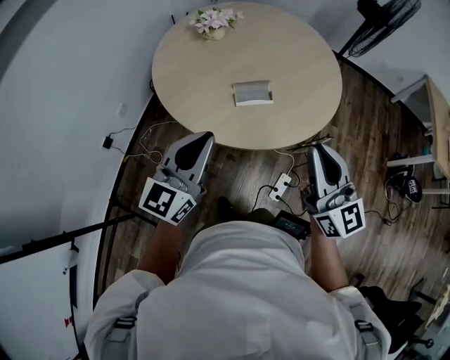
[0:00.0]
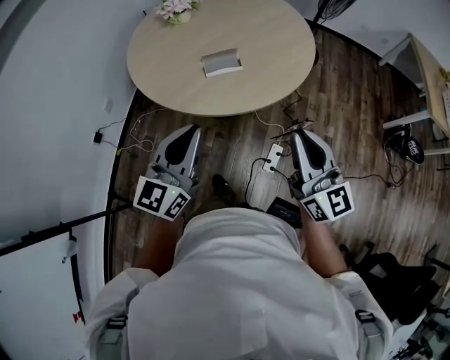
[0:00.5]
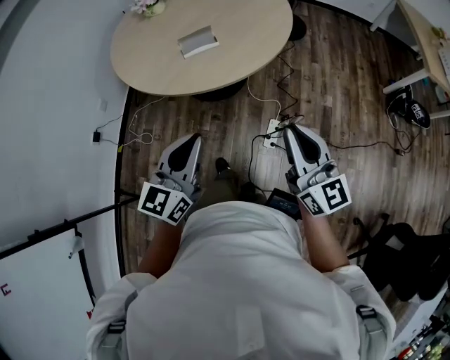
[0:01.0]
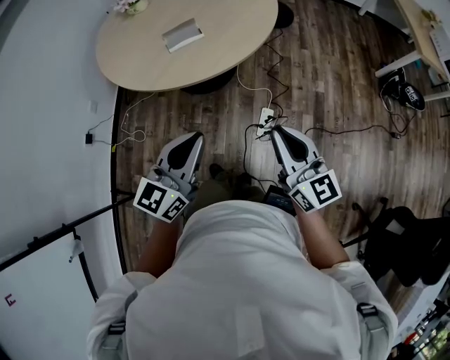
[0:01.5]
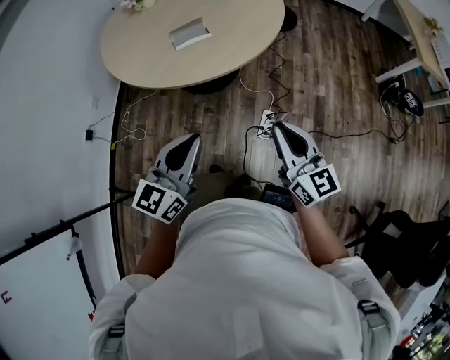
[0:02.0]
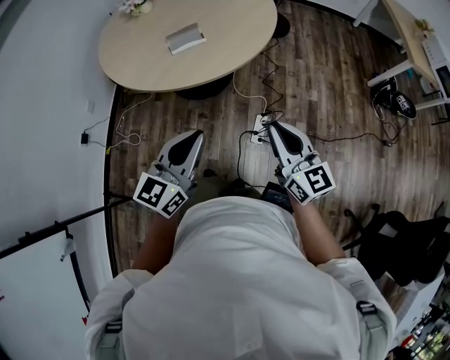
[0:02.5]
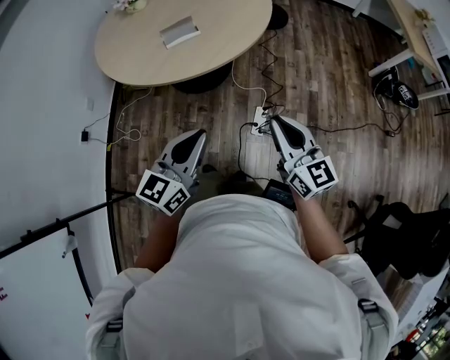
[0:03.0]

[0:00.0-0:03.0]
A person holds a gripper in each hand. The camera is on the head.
0:00.0 to 0:01.5: The left gripper shifts some 25 cm backward and to the right, while the right gripper travels backward, to the right and downward by roughly 30 cm.
0:01.5 to 0:03.0: The grippers move only a little.

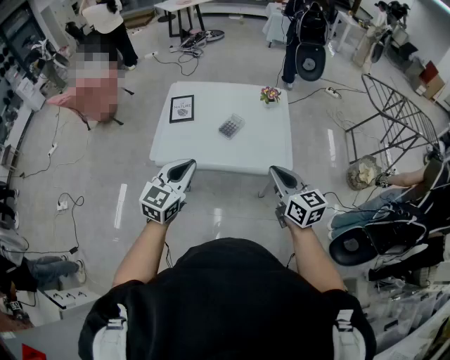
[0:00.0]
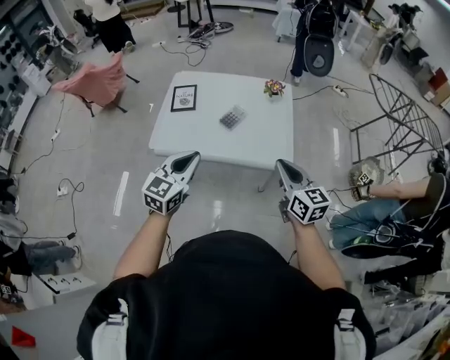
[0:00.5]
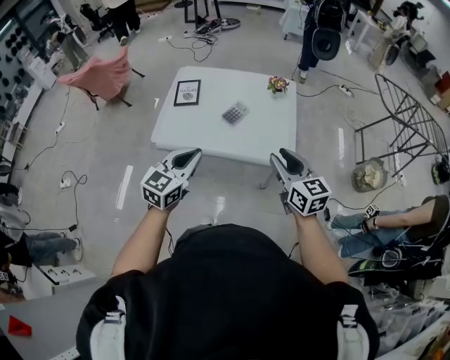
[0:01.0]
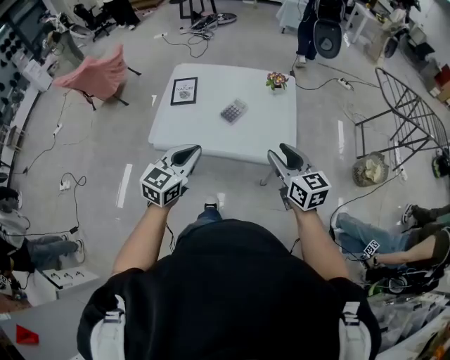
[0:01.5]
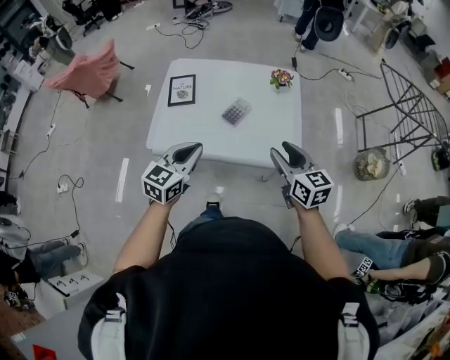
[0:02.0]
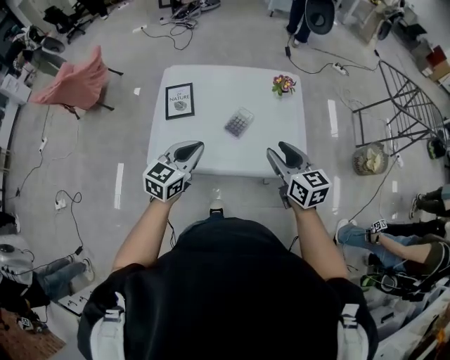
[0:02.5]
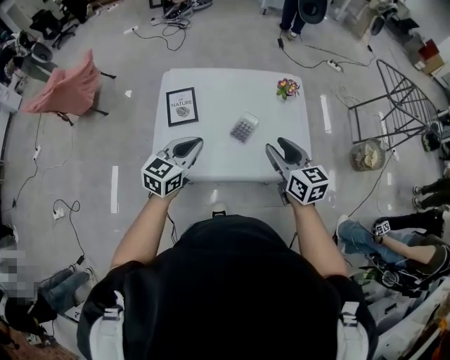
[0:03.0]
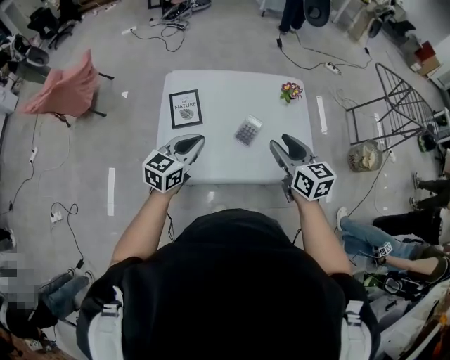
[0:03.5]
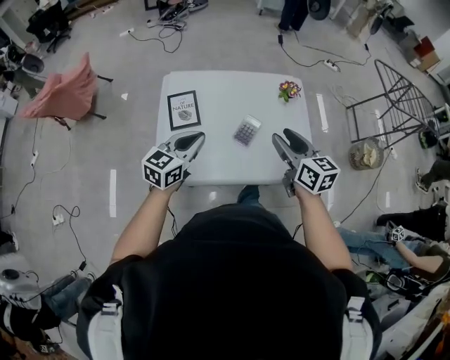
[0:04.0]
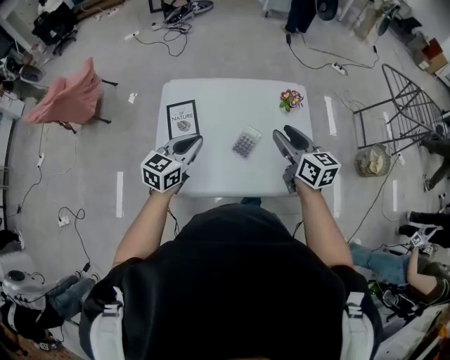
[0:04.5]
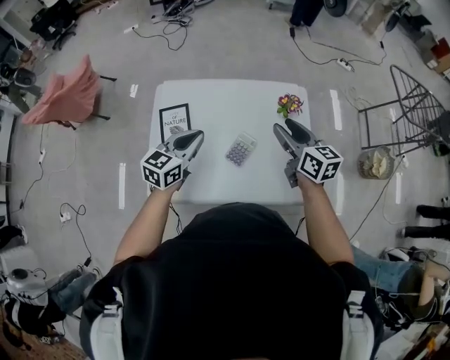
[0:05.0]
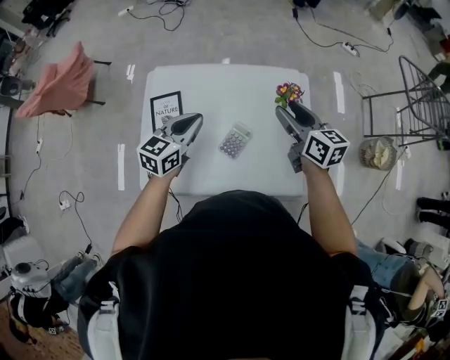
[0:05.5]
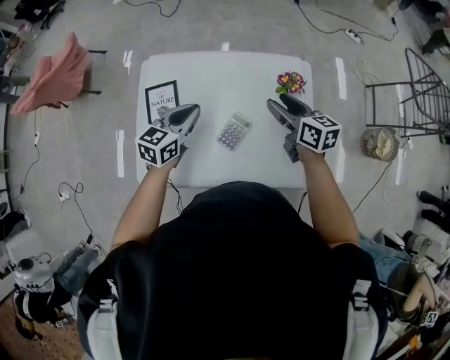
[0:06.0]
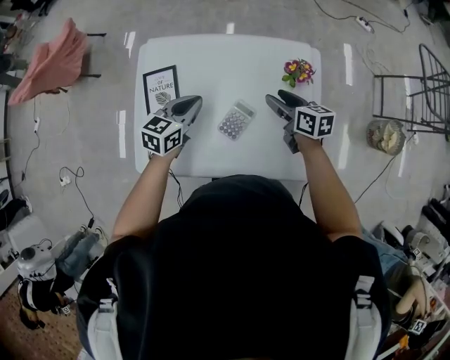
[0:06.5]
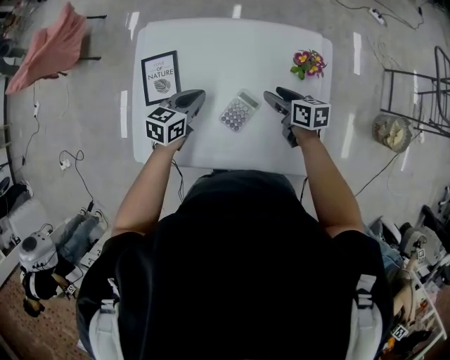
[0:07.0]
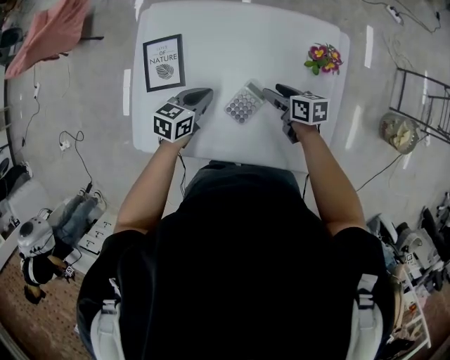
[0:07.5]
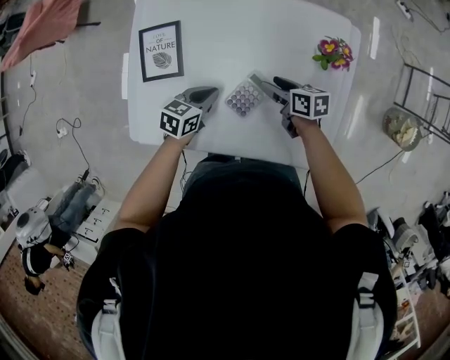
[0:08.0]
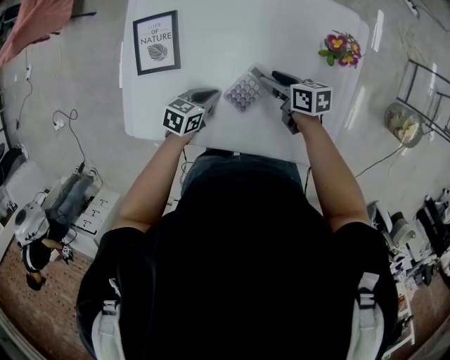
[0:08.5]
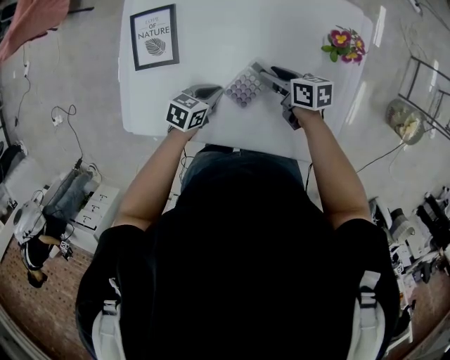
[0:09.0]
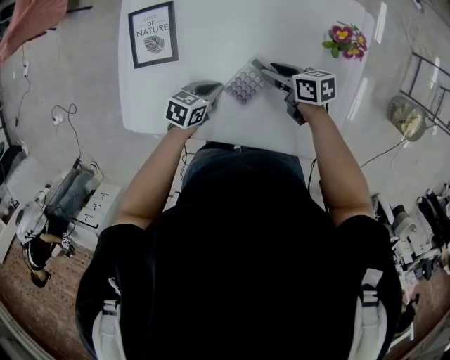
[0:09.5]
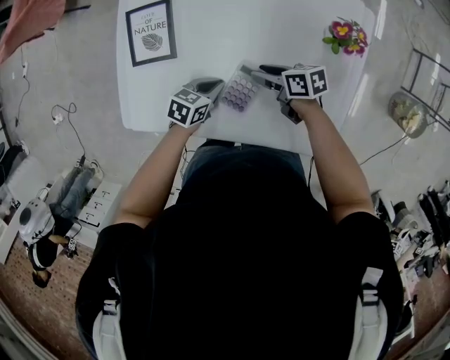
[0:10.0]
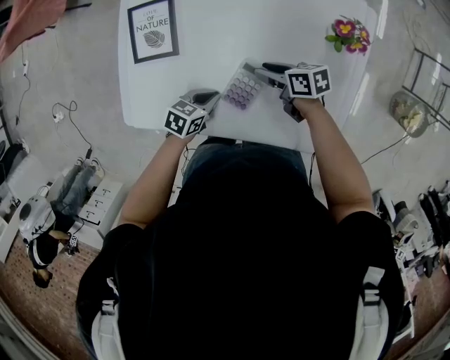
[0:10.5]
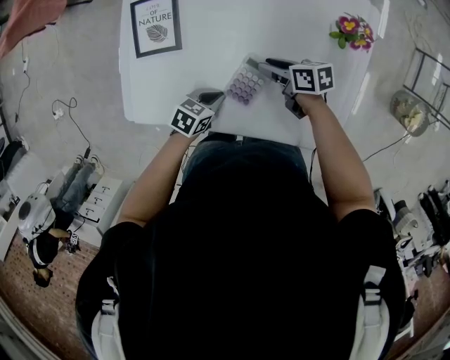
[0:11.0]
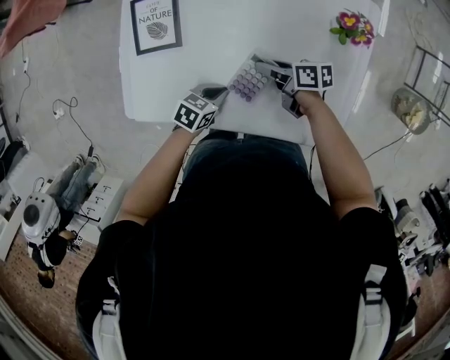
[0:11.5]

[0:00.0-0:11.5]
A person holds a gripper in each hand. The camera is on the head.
0:00.0 to 0:02.0: Both grippers move forward, approximately 10 cm. The right gripper opens its fingers.
0:02.0 to 0:04.0: Both grippers travel together forward and to the left, approximately 20 cm.
0:04.0 to 0:06.0: The right gripper heads forward and downward, covering approximately 25 cm, while the left gripper is displaced forward by approximately 20 cm.
0:06.0 to 0:07.5: Both grippers move downward, roughly 20 cm. The right gripper rotates about 30 degrees; the left gripper changes its angle by approximately 20 degrees.
0:07.5 to 0:09.5: The right gripper shifts by some 5 cm. Meanwhile the left gripper shifts some 10 cm downward.
0:09.5 to 0:11.5: The left gripper ends up approximately 5 cm from where it was.

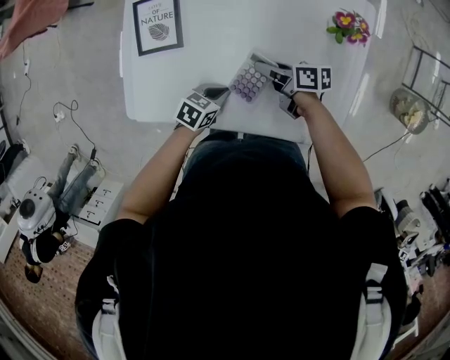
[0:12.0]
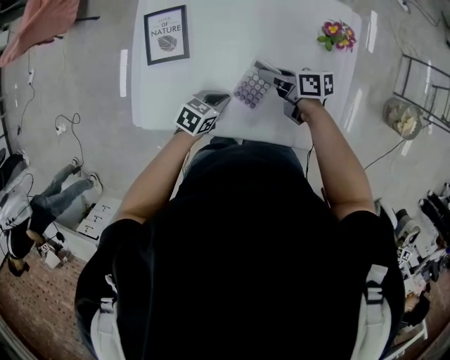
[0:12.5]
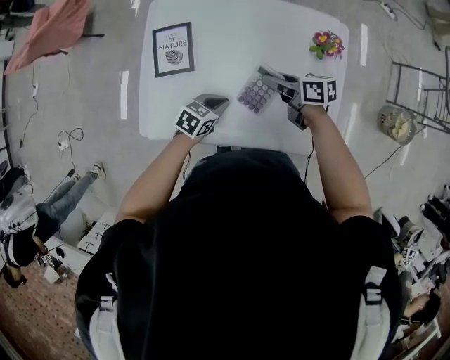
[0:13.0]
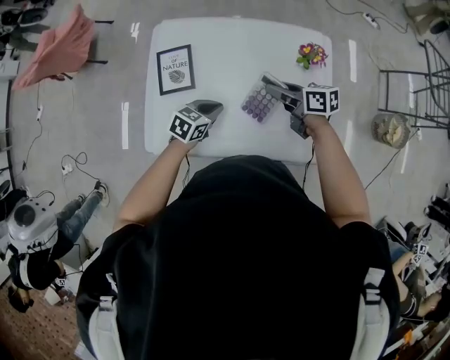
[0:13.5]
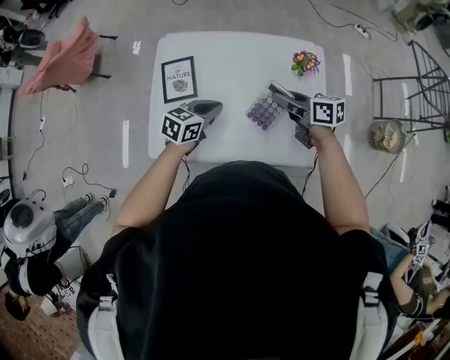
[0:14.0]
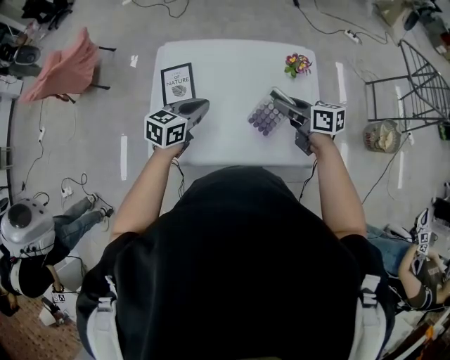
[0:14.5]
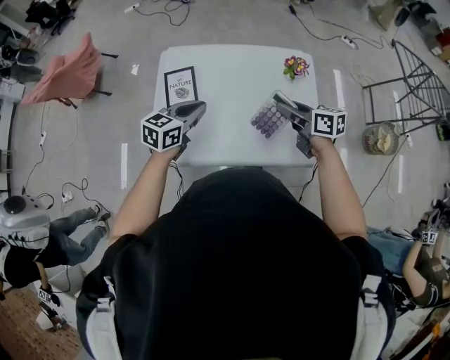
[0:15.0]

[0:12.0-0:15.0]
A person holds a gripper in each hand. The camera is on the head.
0:12.0 to 0:13.5: The two grippers go some 15 cm upward. The right gripper rotates about 20 degrees.
0:13.5 to 0:15.0: The right gripper moves backward and upward, some 15 cm. The left gripper shifts about 15 cm upward, and swivels approximately 20 degrees.

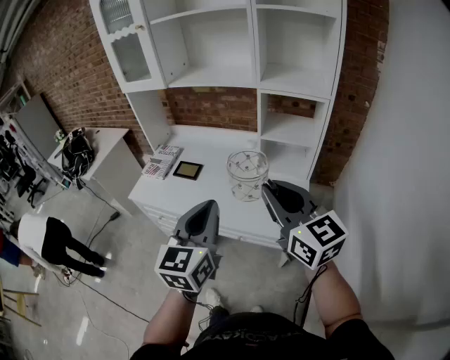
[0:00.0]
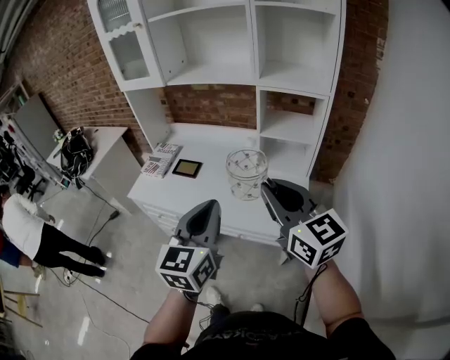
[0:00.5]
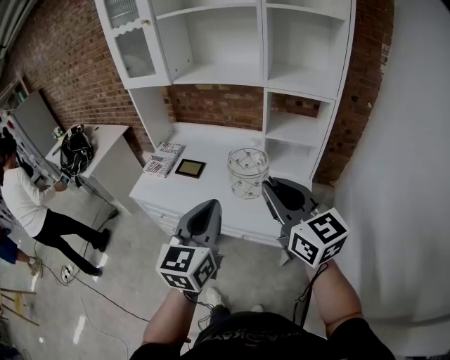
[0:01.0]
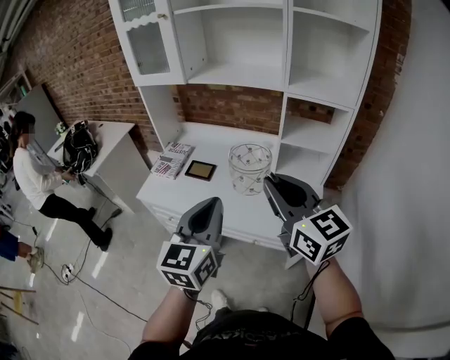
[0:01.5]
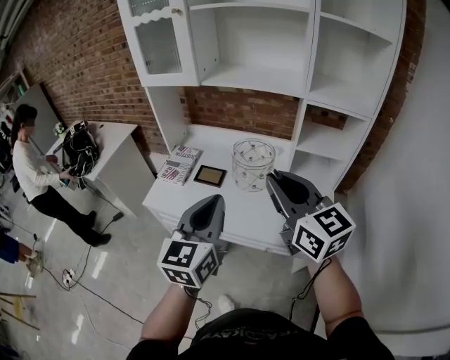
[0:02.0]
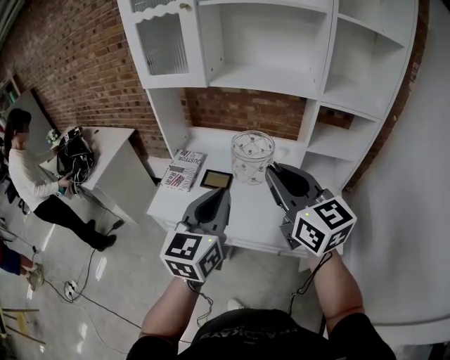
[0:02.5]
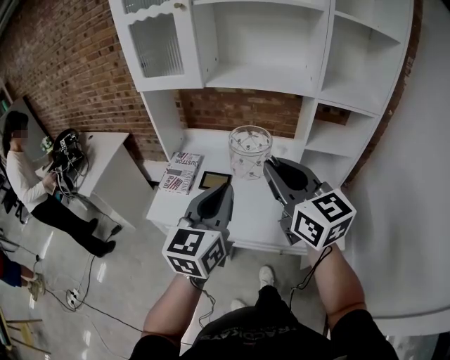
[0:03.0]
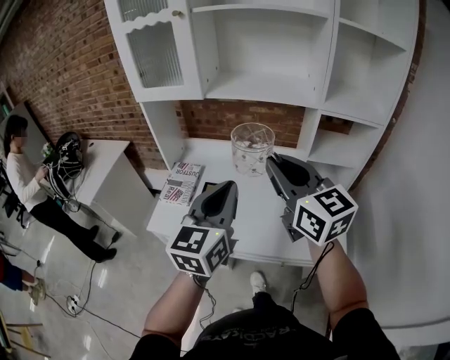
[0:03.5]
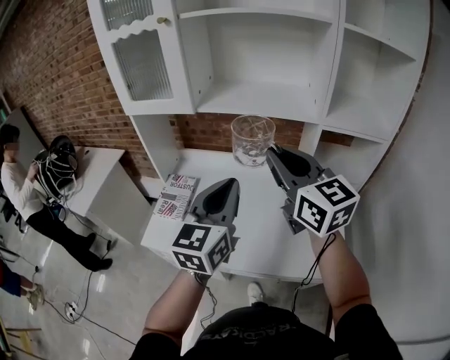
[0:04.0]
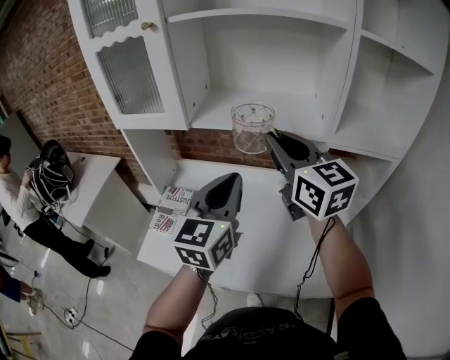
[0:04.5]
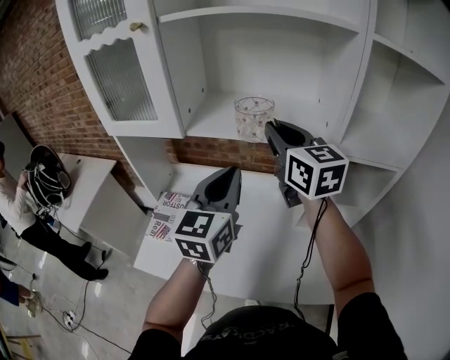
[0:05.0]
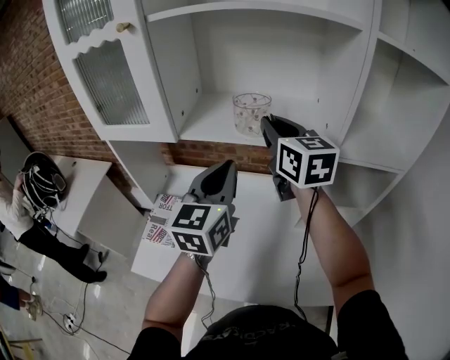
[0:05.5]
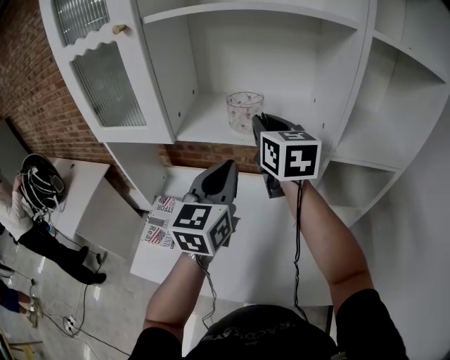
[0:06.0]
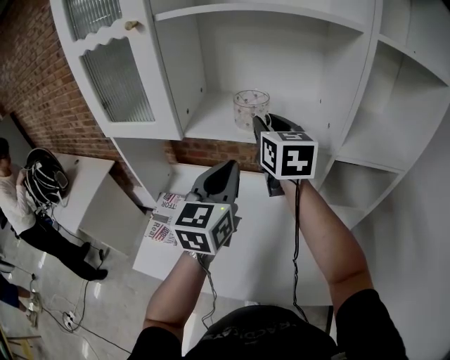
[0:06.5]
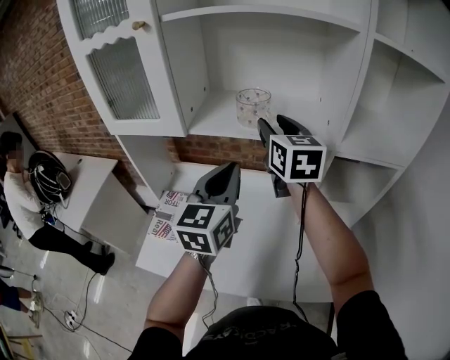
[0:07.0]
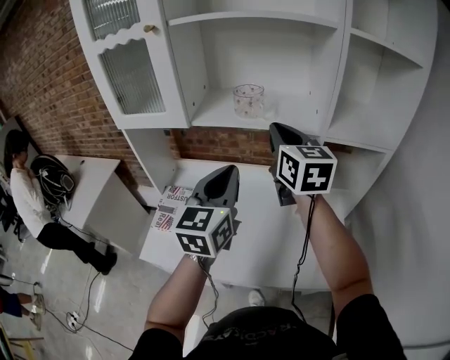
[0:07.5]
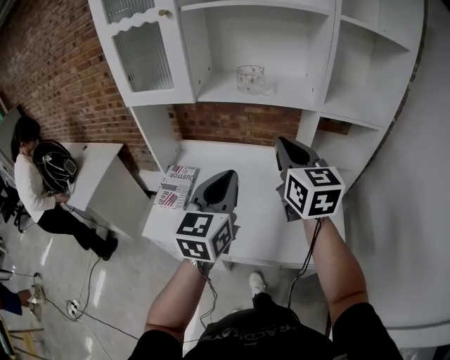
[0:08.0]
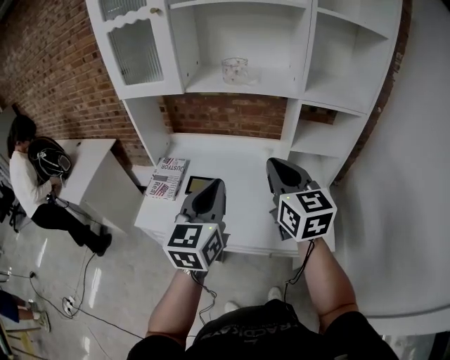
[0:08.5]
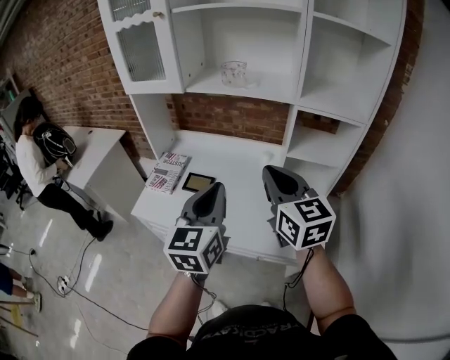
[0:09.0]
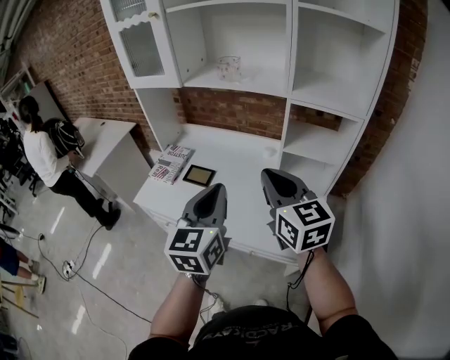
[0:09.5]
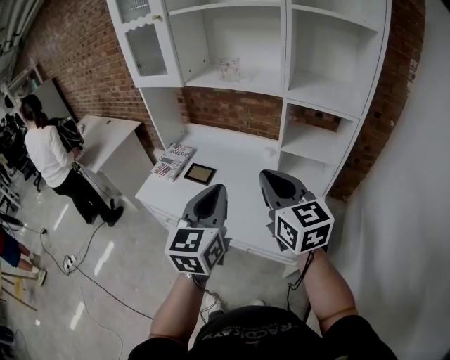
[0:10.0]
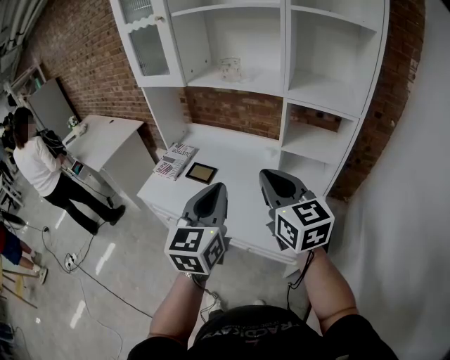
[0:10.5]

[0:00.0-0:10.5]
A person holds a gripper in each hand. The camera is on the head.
0:00.0 to 0:02.0: Both grippers move to the left and forward, approximately 15 cm.
0:02.0 to 0:04.0: Both grippers travel together forward, some 20 cm.
0:04.0 to 0:06.5: The grippers both shift forward by roughly 20 cm. The right gripper turns by approximately 20 degrees.
0:06.5 to 0:08.5: Both grippers move backward, roughly 30 cm. The right gripper closes up.
0:08.5 to 0:10.5: The two grippers go some 15 cm to the right and backward. The right gripper changes its angle by about 20 degrees.
